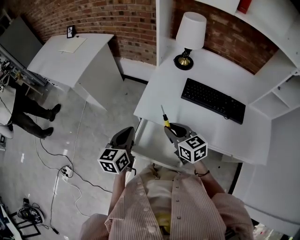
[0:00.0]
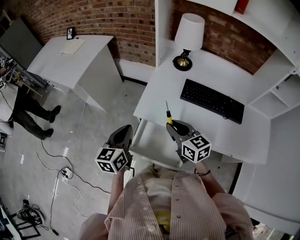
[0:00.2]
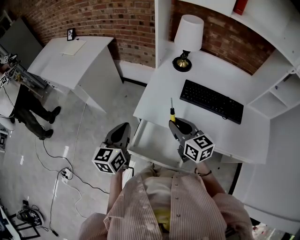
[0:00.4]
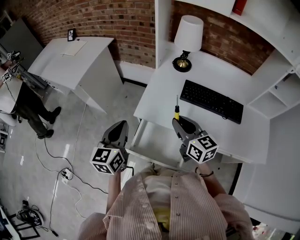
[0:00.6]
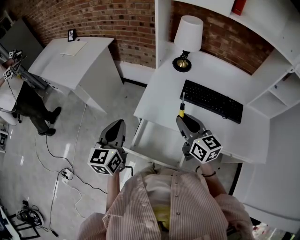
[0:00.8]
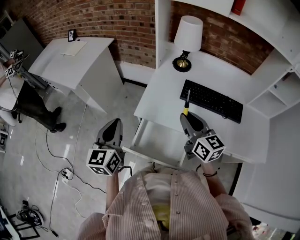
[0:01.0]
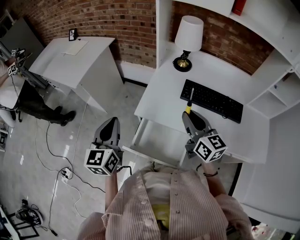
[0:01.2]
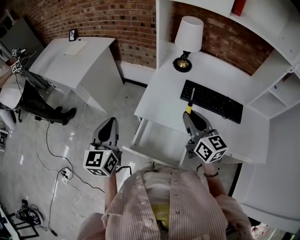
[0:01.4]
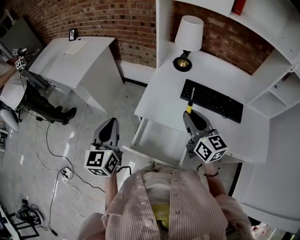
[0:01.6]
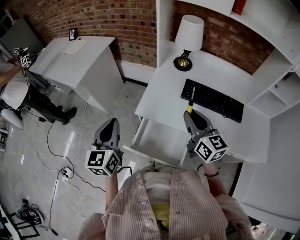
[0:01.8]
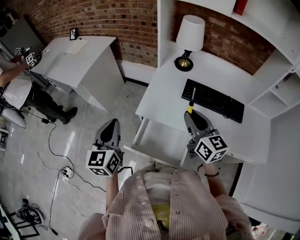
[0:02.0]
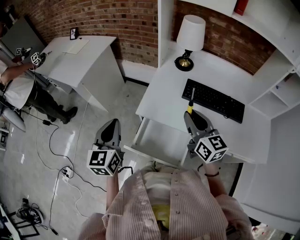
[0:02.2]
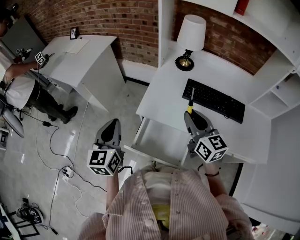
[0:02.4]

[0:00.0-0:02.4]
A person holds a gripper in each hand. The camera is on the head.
0:00.0 to 0:01.2: The right gripper heads upward and to the right, covering about 15 cm, and turns by approximately 20 degrees. The left gripper moves upward, some 10 cm.
0:01.2 to 0:02.4: The grippers make only small movements.

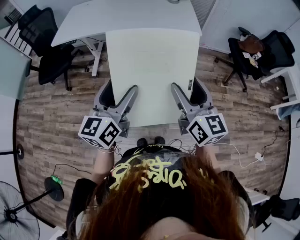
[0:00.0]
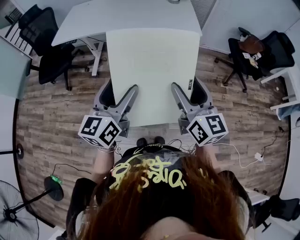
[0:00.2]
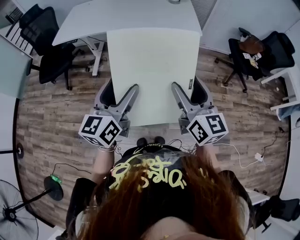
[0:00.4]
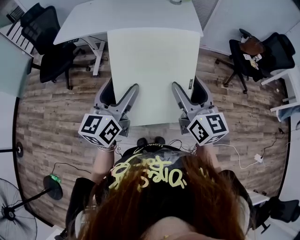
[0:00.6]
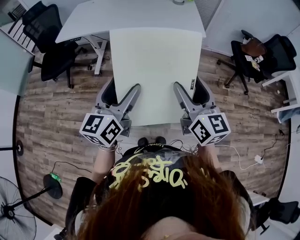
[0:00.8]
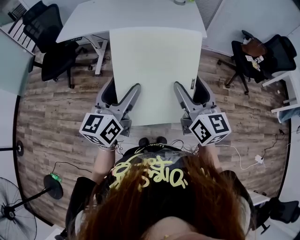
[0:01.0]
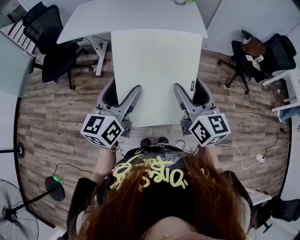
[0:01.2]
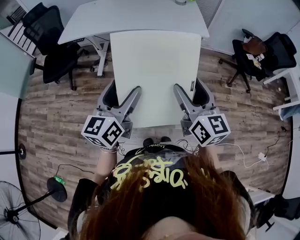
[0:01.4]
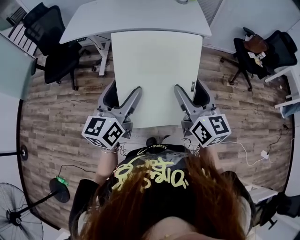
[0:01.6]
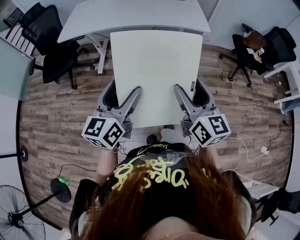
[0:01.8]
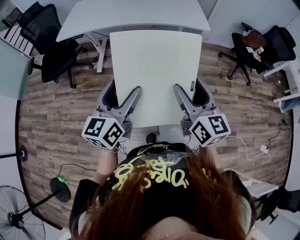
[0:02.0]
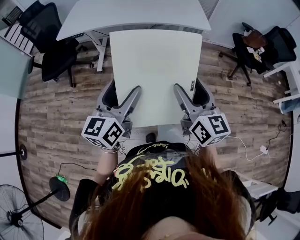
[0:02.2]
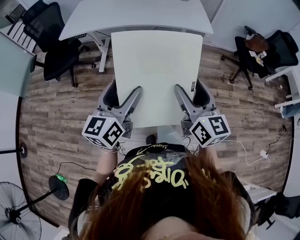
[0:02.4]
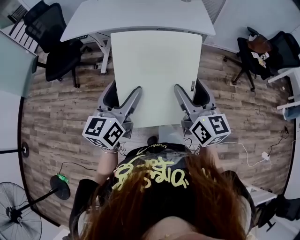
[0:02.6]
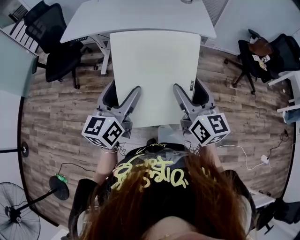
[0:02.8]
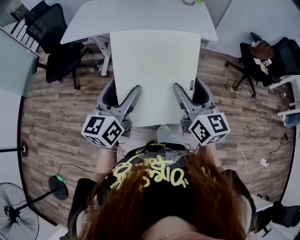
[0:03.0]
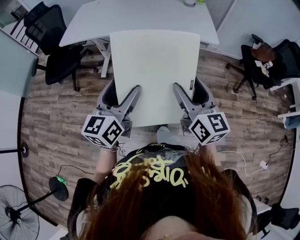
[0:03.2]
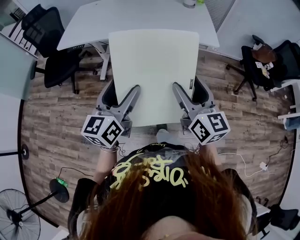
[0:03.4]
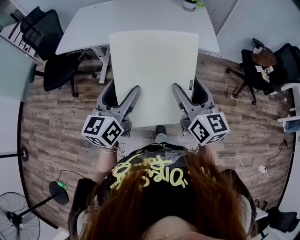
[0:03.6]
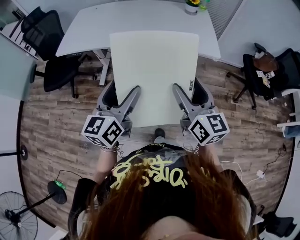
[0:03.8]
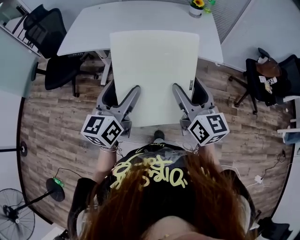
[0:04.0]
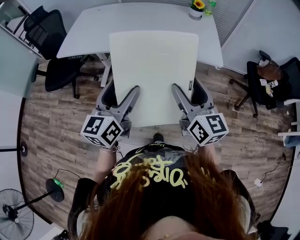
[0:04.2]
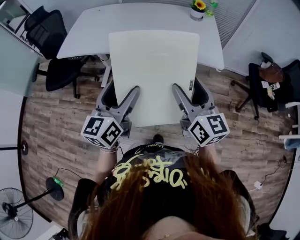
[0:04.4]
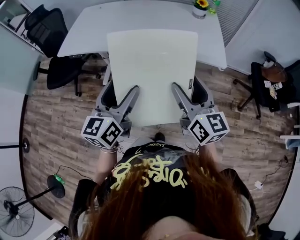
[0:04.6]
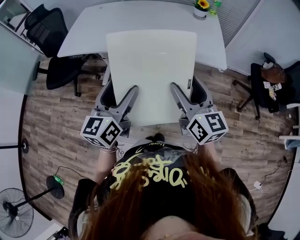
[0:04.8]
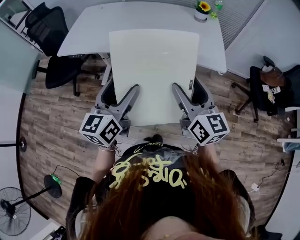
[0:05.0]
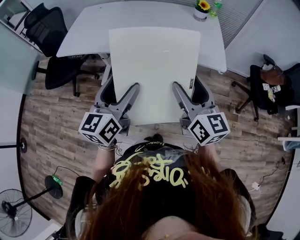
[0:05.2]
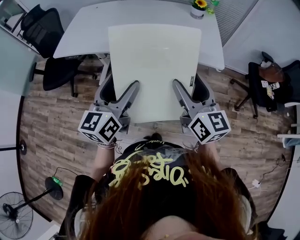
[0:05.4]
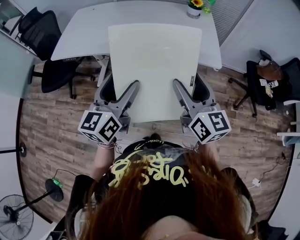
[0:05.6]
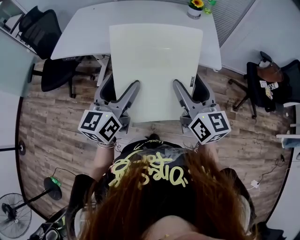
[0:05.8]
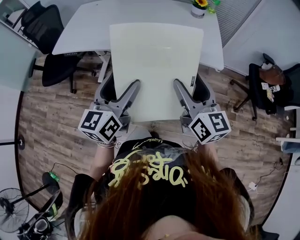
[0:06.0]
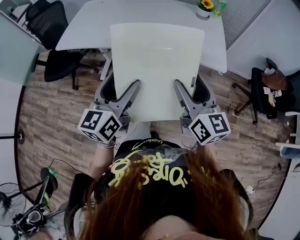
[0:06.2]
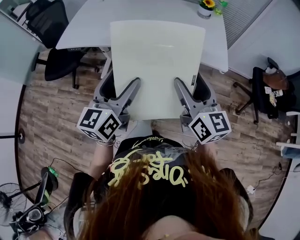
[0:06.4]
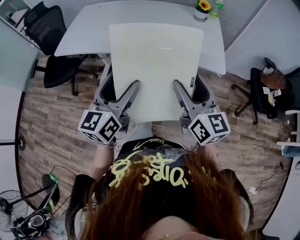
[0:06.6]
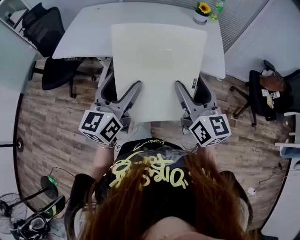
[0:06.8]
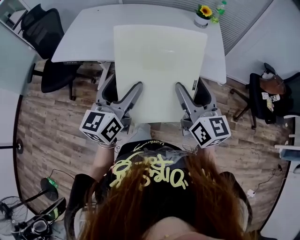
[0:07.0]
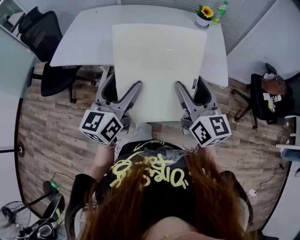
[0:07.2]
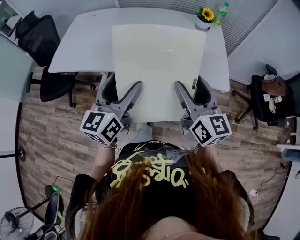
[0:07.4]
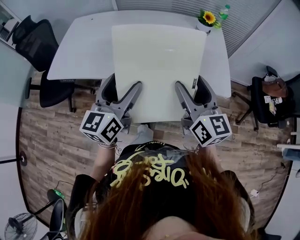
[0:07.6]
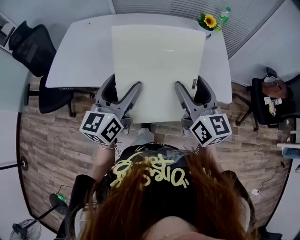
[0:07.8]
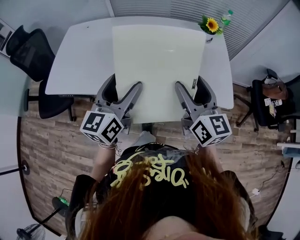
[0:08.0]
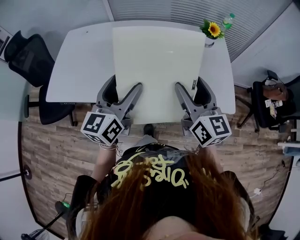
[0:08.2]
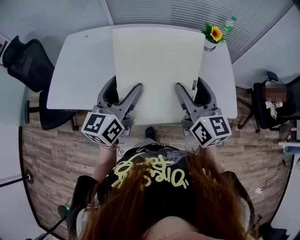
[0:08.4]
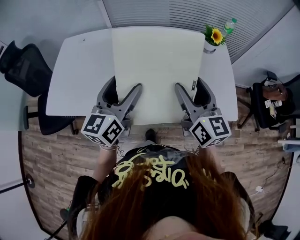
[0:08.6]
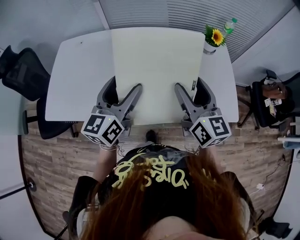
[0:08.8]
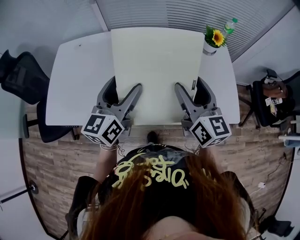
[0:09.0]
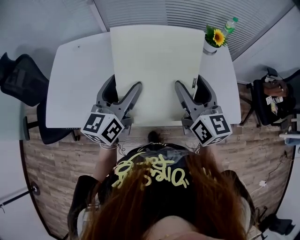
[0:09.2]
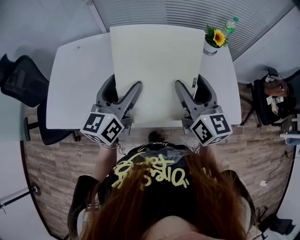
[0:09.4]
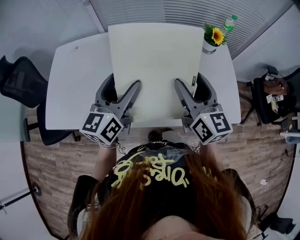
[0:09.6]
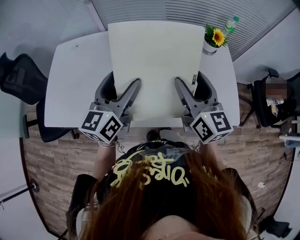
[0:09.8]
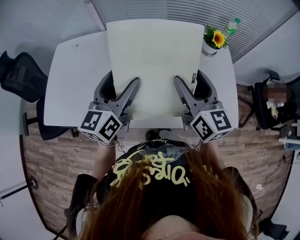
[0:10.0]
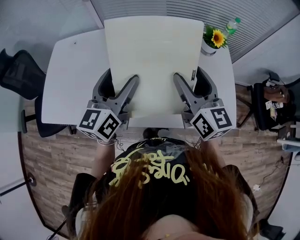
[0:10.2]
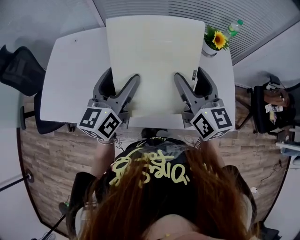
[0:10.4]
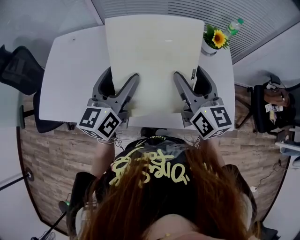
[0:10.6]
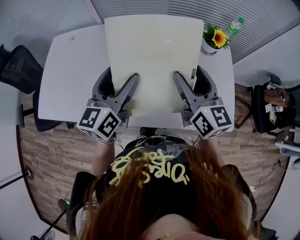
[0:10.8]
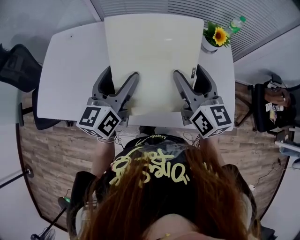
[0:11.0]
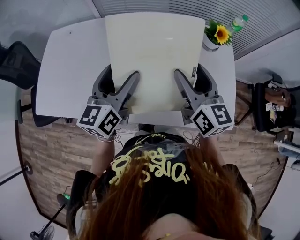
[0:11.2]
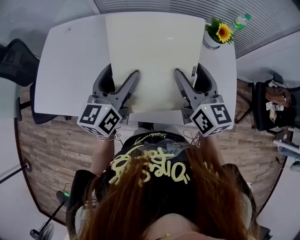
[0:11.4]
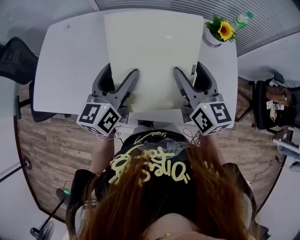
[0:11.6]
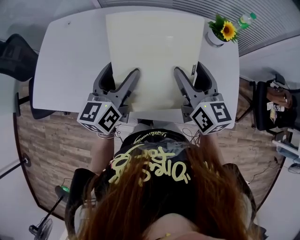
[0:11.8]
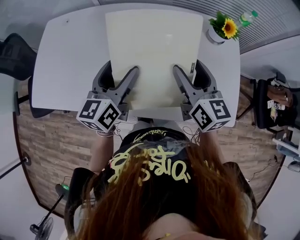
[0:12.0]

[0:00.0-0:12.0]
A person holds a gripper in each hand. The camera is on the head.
0:00.0 to 0:01.6: The two grippers go approximately 5 cm to the left.
0:01.6 to 0:03.0: Both grippers travel together forward, approximately 5 cm.
0:03.0 to 0:04.4: The two grippers go about 20 cm forward.
0:04.4 to 0:06.0: The grippers stay close to where they were, moving slightly.
0:06.0 to 0:07.6: Both grippers travel together forward, roughly 15 cm.
0:07.6 to 0:09.0: The two grippers go roughly 20 cm forward.
0:09.0 to 0:10.4: The left gripper shifts by roughly 5 cm, while the right gripper is displaced forward by some 5 cm.
0:10.4 to 0:12.0: The two grippers go approximately 10 cm downward.

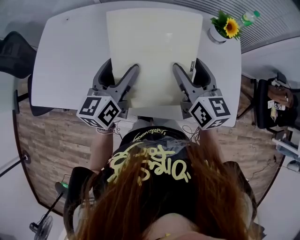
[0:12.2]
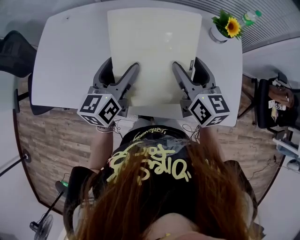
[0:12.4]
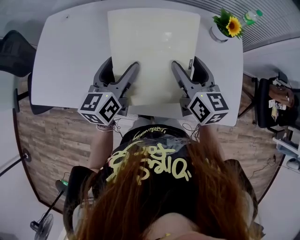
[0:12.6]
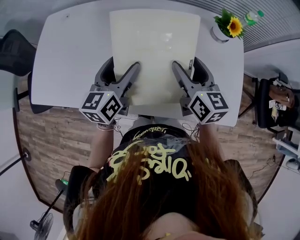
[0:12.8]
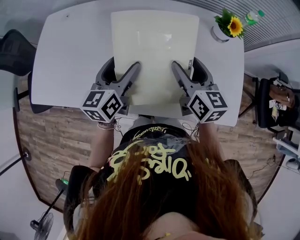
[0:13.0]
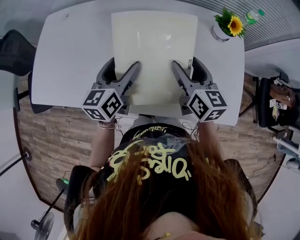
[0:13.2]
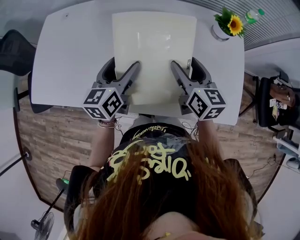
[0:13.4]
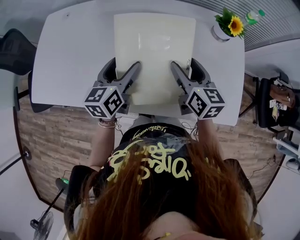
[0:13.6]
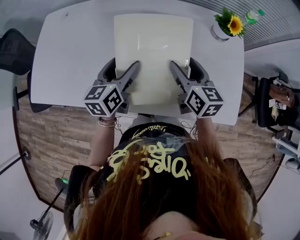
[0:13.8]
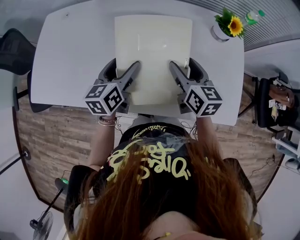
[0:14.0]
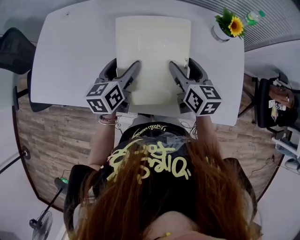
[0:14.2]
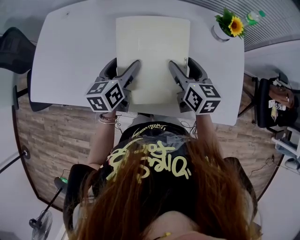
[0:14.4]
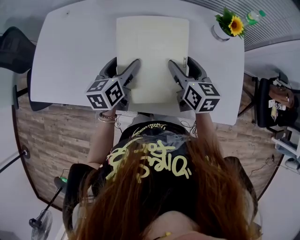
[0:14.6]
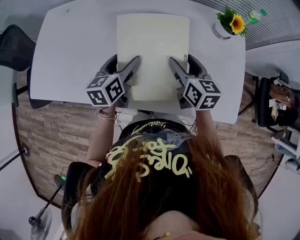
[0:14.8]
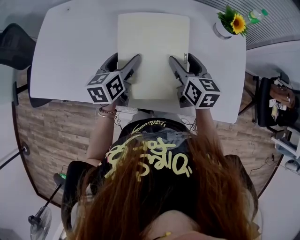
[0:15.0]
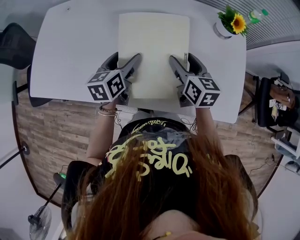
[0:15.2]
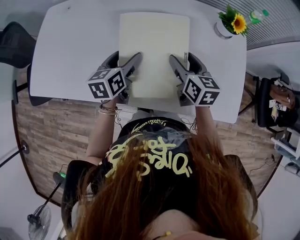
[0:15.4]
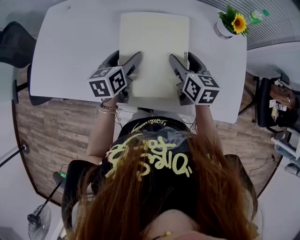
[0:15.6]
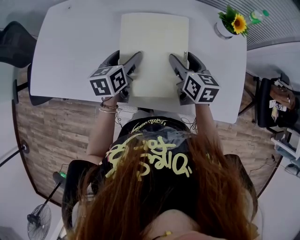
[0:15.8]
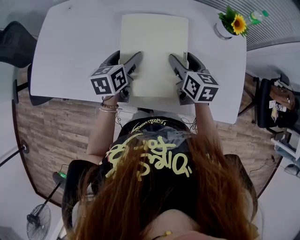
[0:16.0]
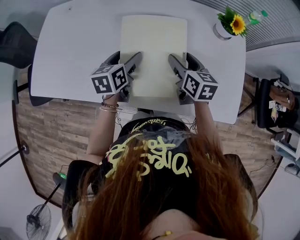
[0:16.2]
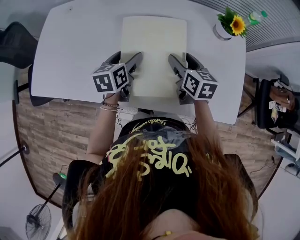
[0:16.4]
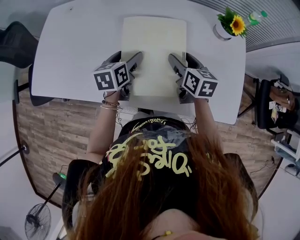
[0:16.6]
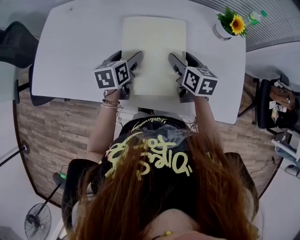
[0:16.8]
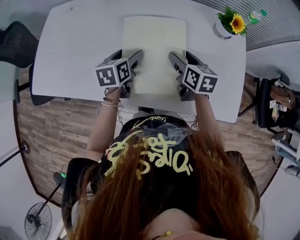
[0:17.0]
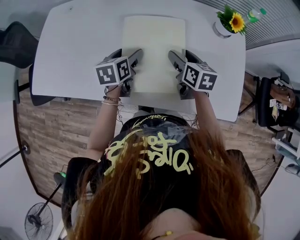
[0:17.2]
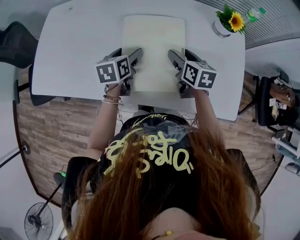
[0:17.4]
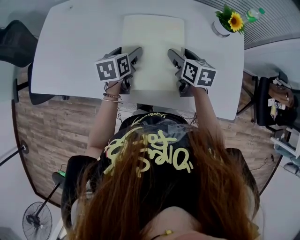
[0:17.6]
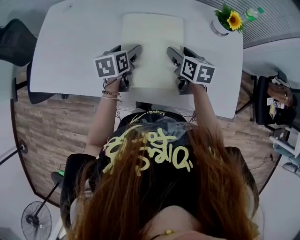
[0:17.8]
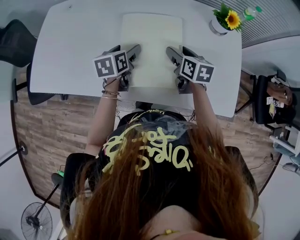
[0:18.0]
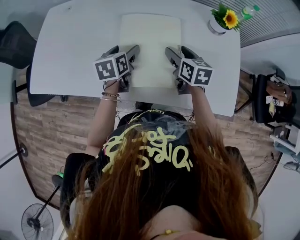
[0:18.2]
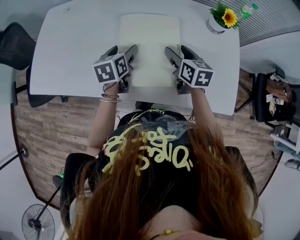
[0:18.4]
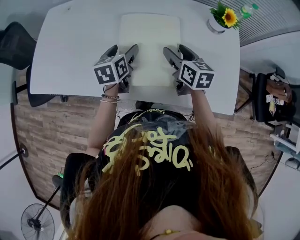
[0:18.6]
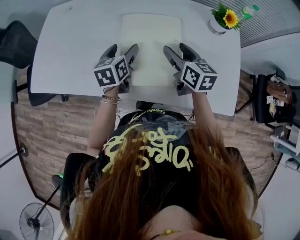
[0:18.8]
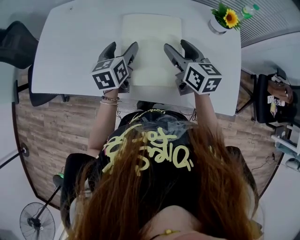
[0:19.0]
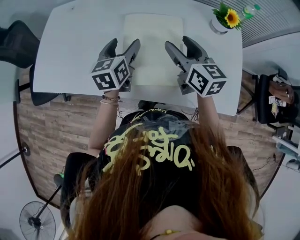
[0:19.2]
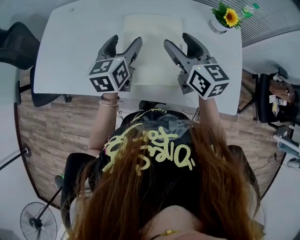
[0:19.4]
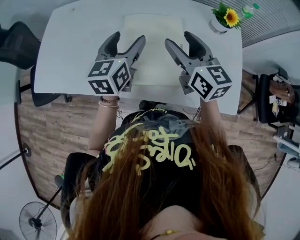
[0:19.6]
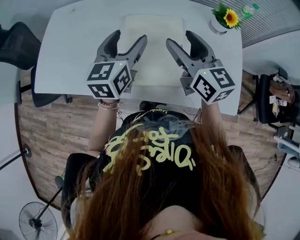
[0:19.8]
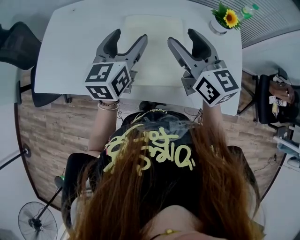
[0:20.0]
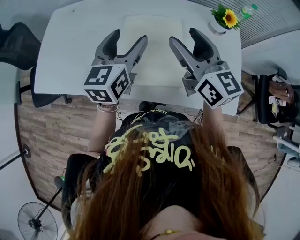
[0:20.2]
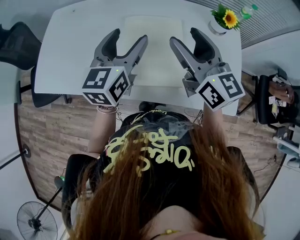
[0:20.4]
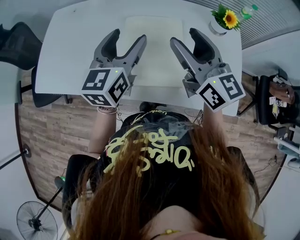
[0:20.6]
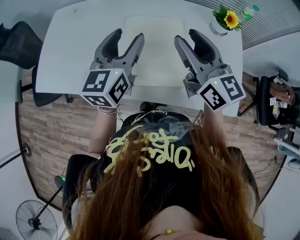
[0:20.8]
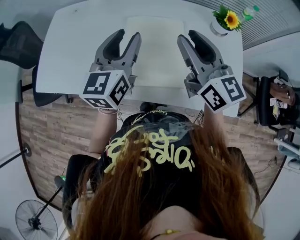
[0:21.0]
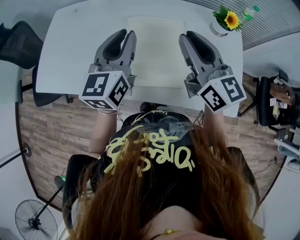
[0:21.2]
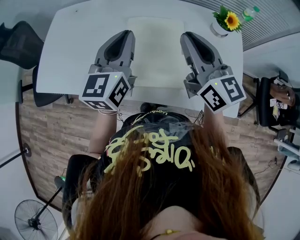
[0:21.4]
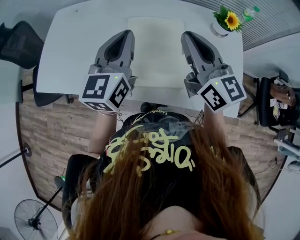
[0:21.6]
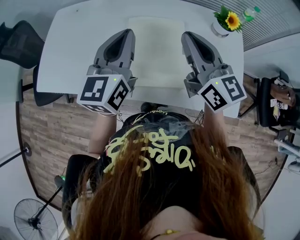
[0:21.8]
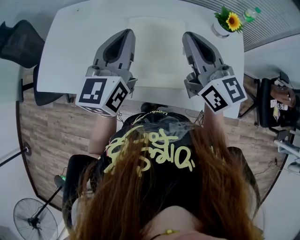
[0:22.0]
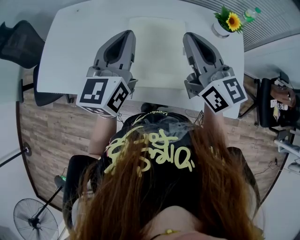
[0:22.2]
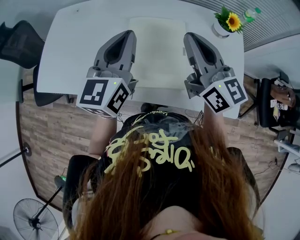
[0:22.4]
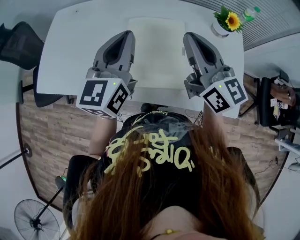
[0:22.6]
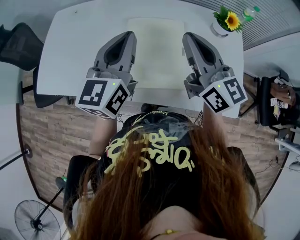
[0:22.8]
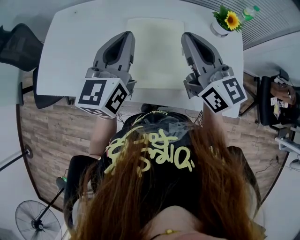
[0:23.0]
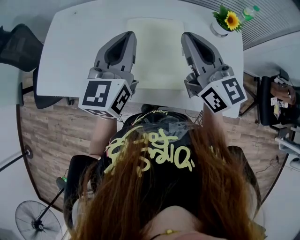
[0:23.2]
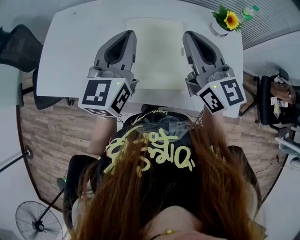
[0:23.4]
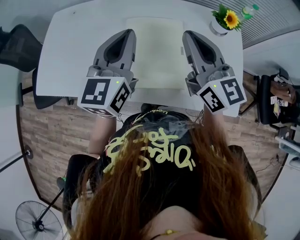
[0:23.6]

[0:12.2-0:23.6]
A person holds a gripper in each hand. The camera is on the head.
0:12.2 to 0:13.6: Both grippers travel together downward, about 5 cm.
0:13.6 to 0:15.0: The grippers make only small movements.
0:15.0 to 0:17.8: There are only small adjustments of the grippers.
0:17.8 to 0:19.4: The grippers both shift upward by approximately 15 cm. The left gripper turns by approximately 20 degrees. Meanwhile the right gripper turns by roughly 30 degrees.
0:19.4 to 0:20.8: The two grippers go about 10 cm upward.
0:20.8 to 0:22.2: The right gripper closes its fingers, while the left gripper closes its fingers.
0:22.2 to 0:23.6: The grippers stay close to where they were, moving slightly.
